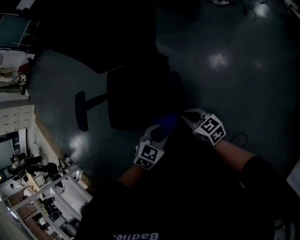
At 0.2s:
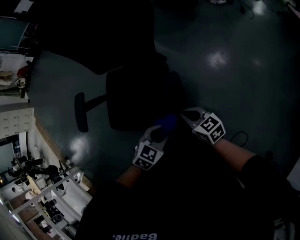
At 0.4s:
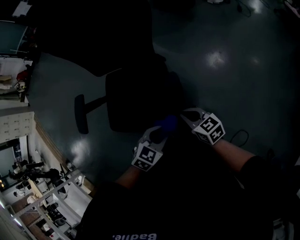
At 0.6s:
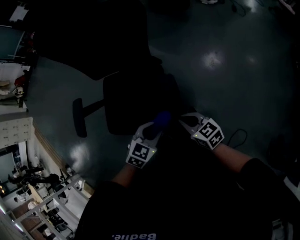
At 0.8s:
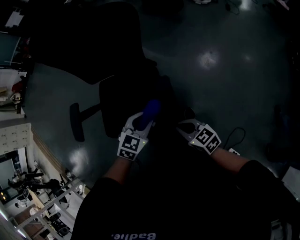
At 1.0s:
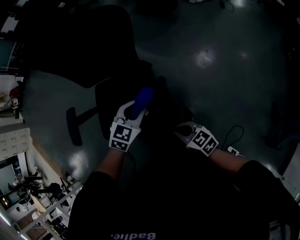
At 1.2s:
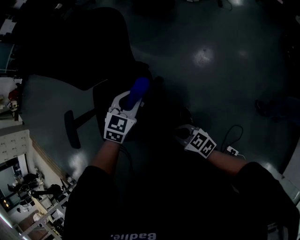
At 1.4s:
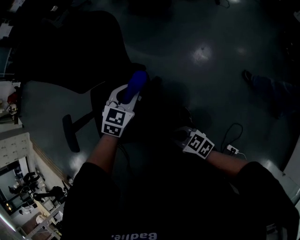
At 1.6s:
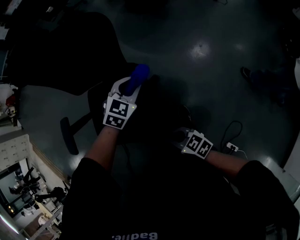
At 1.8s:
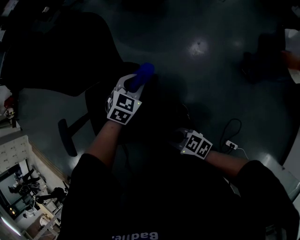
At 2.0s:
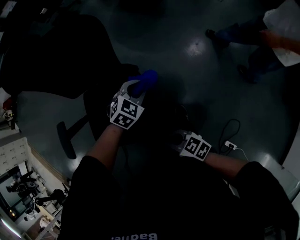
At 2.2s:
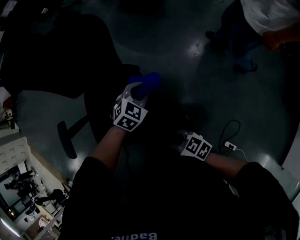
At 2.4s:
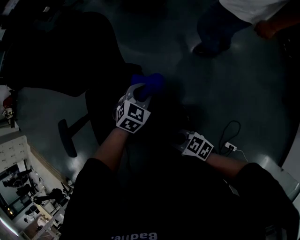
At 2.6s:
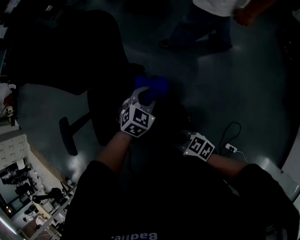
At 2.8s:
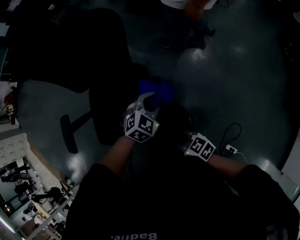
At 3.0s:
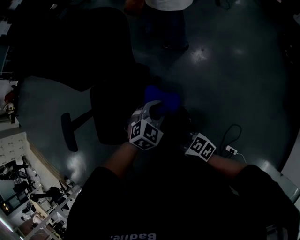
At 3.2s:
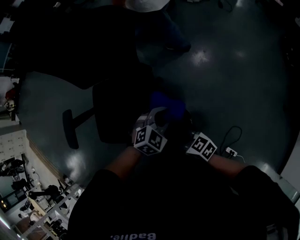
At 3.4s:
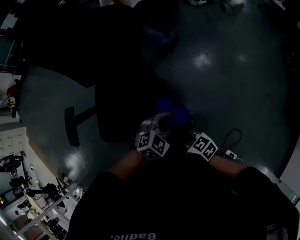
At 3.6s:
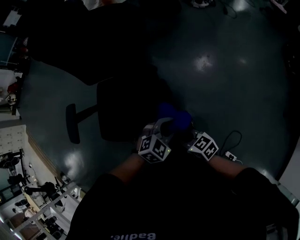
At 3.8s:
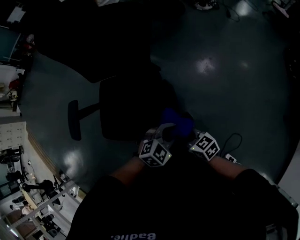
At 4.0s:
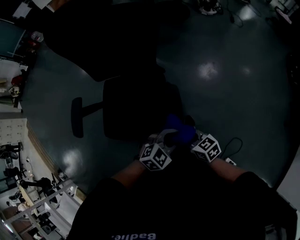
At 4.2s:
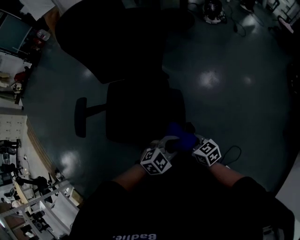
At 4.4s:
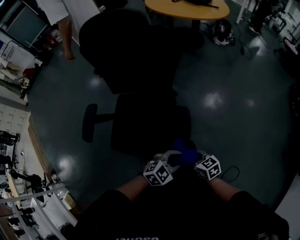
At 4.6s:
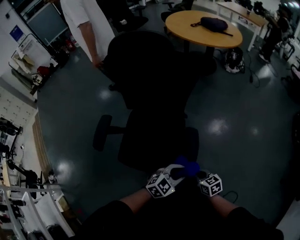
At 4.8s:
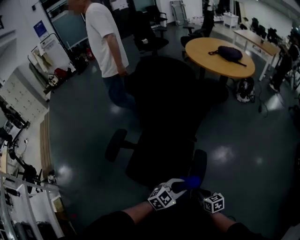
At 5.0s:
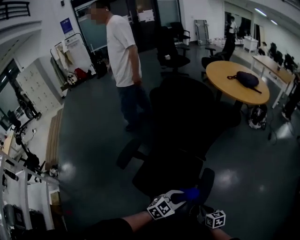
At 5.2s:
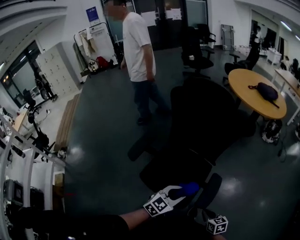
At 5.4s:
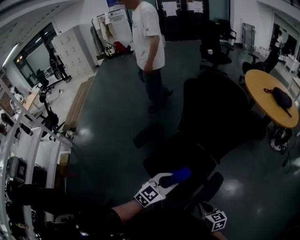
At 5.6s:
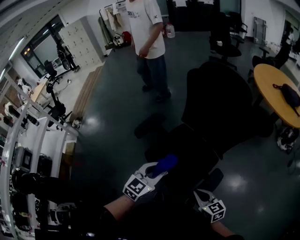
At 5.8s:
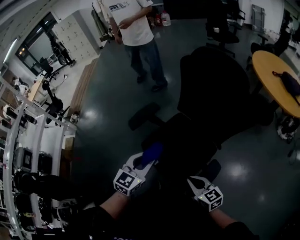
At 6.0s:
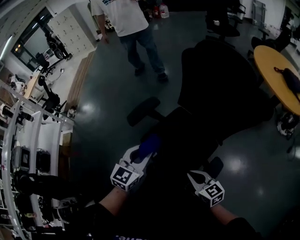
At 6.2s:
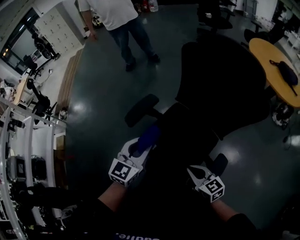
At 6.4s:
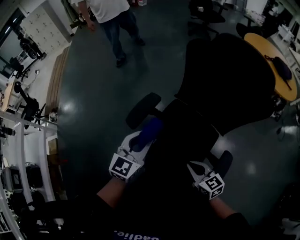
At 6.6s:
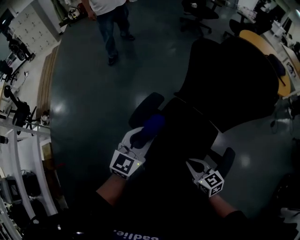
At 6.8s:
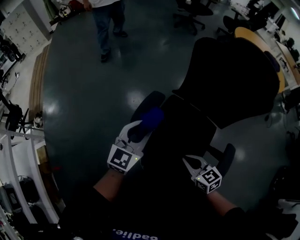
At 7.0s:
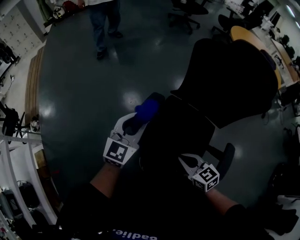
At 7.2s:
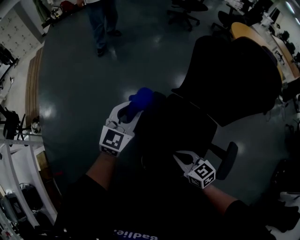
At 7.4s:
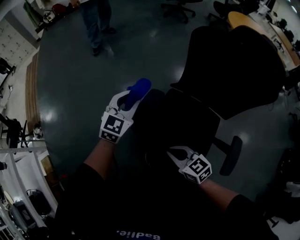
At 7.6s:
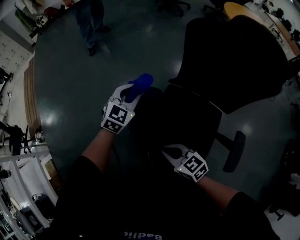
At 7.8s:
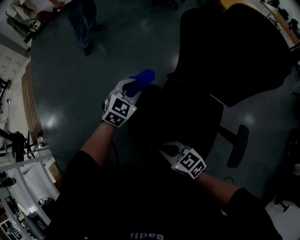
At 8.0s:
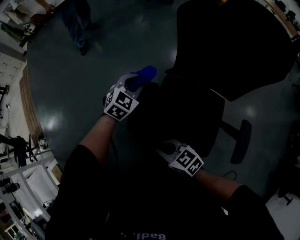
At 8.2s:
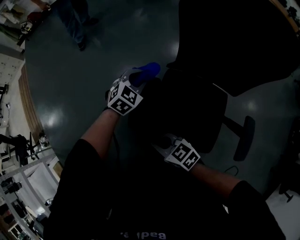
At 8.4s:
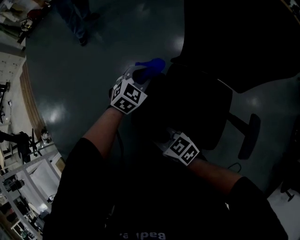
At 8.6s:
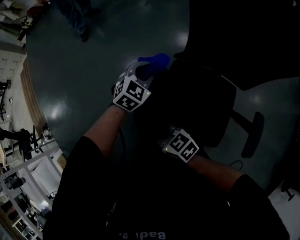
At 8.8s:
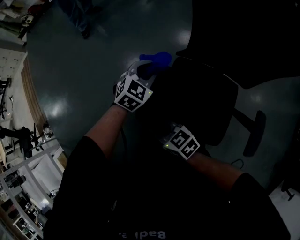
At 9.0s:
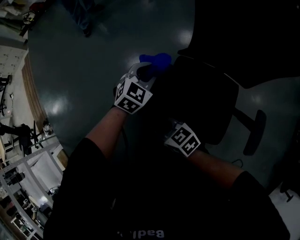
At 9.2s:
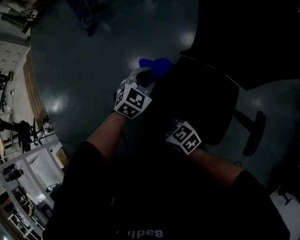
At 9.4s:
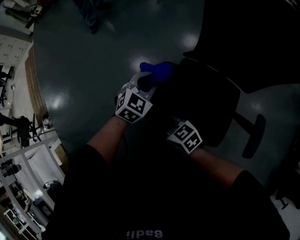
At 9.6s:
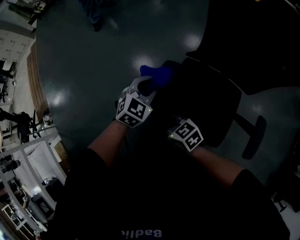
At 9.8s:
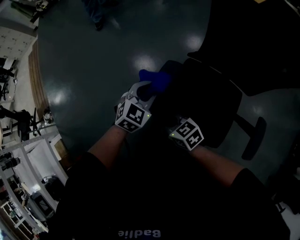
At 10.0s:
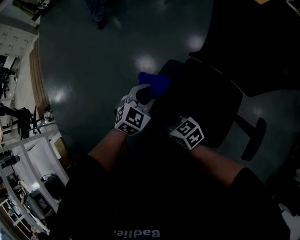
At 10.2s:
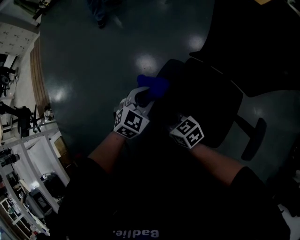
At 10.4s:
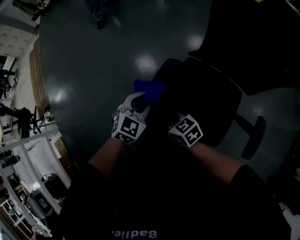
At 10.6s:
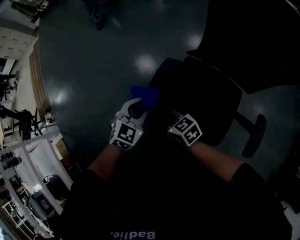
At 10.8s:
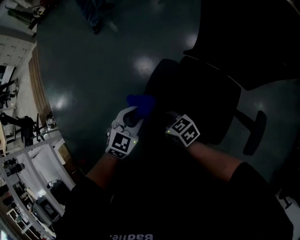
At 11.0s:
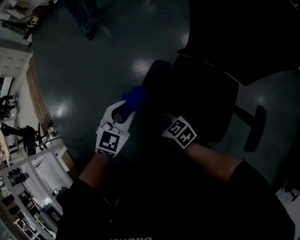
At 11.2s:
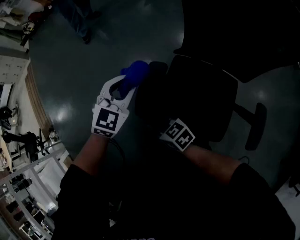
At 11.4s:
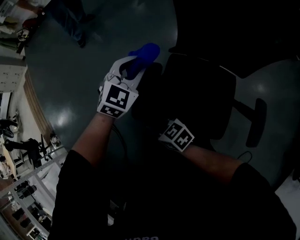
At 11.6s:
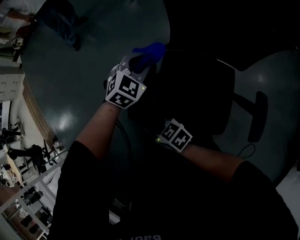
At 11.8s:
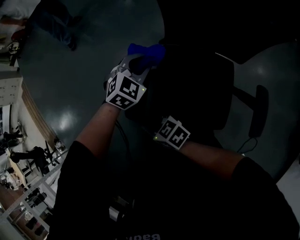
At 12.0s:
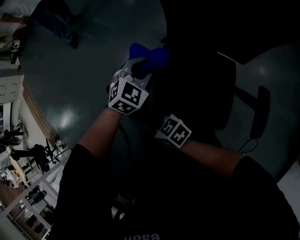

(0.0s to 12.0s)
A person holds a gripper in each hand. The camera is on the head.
0.0s - 1.6s: The left gripper is displaced forward by approximately 25 cm, while the right gripper goes roughly 5 cm backward.
1.6s - 3.0s: The left gripper shifts some 15 cm backward.
3.0s - 4.4s: The left gripper shifts by some 15 cm.
4.4s - 6.0s: The left gripper shifts by some 35 cm, and swivels roughly 80 degrees, while the right gripper ends up roughly 20 cm from where it was, and changes its angle by roughly 40 degrees.
6.0s - 7.6s: The right gripper travels to the left and forward by about 30 cm. The left gripper is displaced forward by approximately 30 cm, and swivels approximately 30 degrees.
7.6s - 9.0s: The right gripper travels downward, to the left and forward by approximately 10 cm; the left gripper heads downward, covering about 10 cm.
9.0s - 10.4s: The left gripper moves backward and to the left, approximately 15 cm.
10.4s - 12.0s: The left gripper shifts about 15 cm to the right and forward, and swivels about 20 degrees.

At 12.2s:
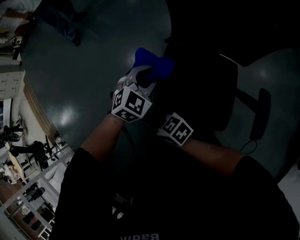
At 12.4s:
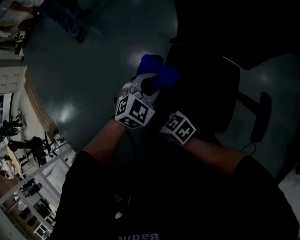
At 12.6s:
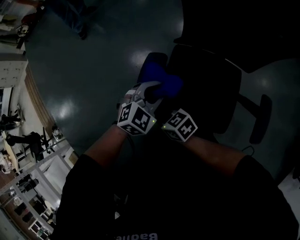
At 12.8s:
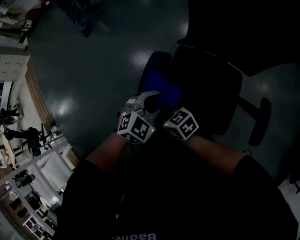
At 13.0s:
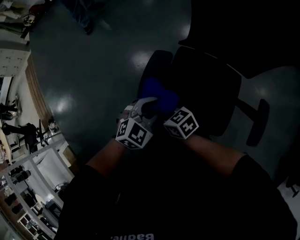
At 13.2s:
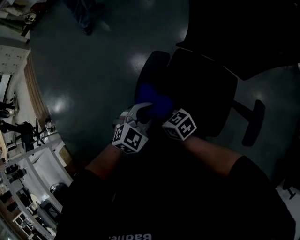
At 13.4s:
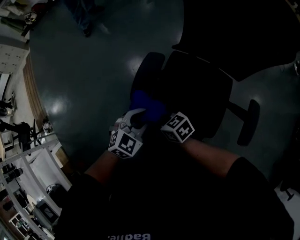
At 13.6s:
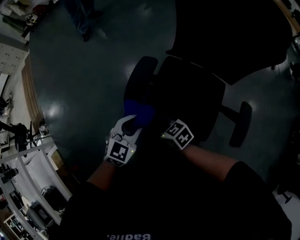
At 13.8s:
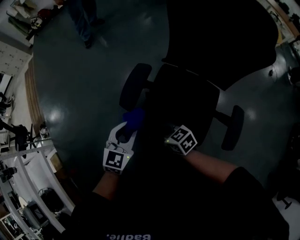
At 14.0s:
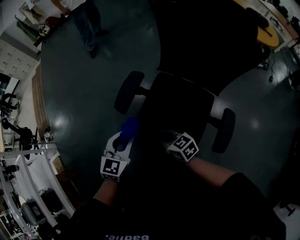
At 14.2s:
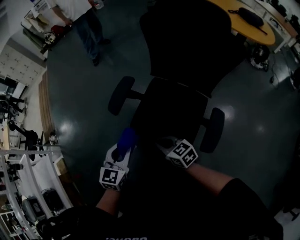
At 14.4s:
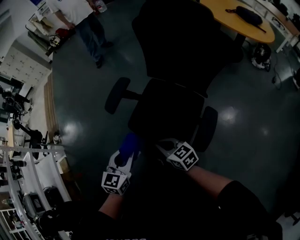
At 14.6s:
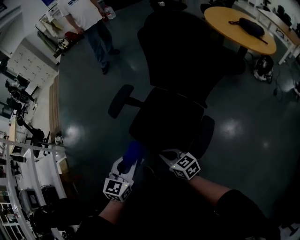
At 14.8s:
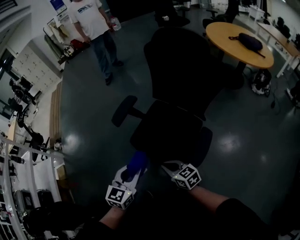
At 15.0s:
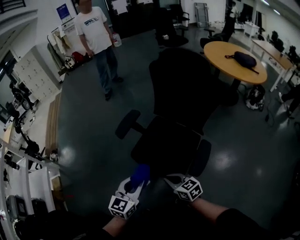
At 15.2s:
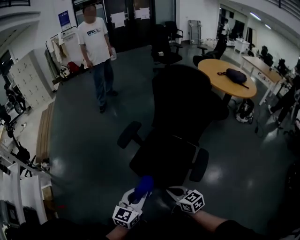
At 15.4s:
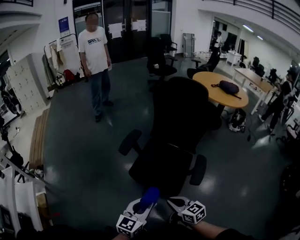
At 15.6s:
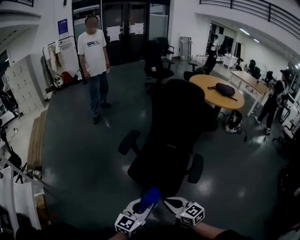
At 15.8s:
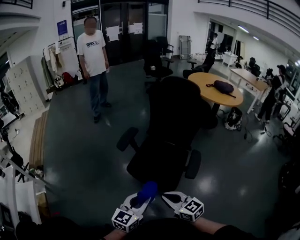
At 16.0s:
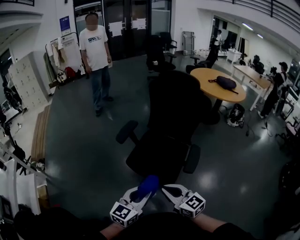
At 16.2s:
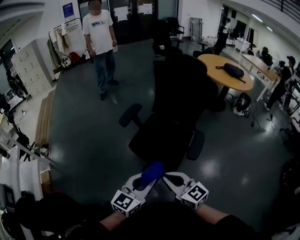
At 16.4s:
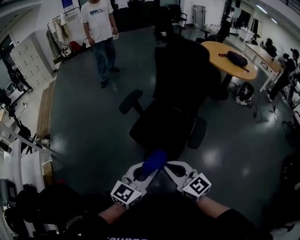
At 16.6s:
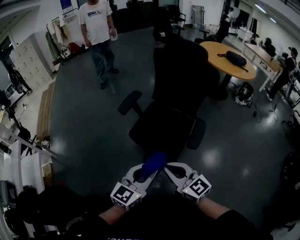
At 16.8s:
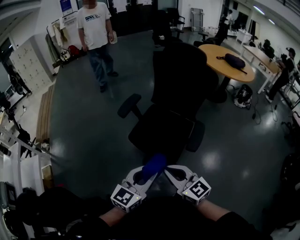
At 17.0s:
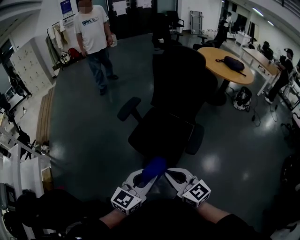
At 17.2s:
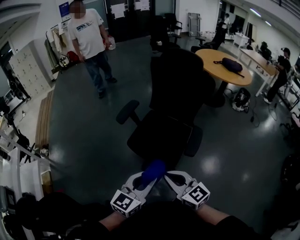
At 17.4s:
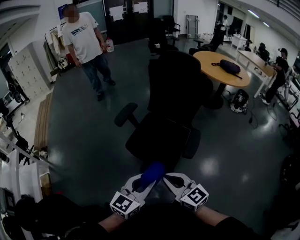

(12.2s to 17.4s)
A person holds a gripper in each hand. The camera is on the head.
12.2s - 14.0s: The right gripper shifts about 20 cm to the right, backward and upward. Meanwhile the left gripper shifts approximately 25 cm backward and to the left, and turns by roughly 40 degrees.
14.0s - 15.6s: The right gripper heads backward and upward, covering roughly 25 cm, and changes its angle by approximately 20 degrees. Meanwhile the left gripper heads backward, covering about 25 cm, and changes its angle by approximately 20 degrees.
15.6s - 17.4s: The right gripper is displaced upward by approximately 5 cm. Meanwhile the left gripper travels to the right and upward by roughly 10 cm.

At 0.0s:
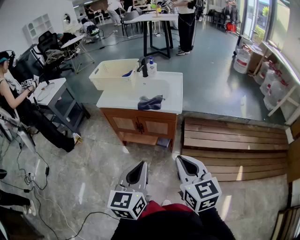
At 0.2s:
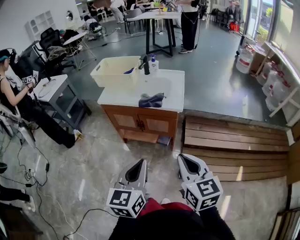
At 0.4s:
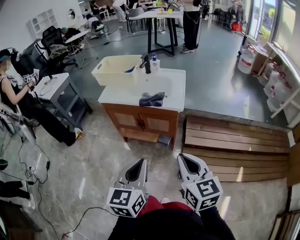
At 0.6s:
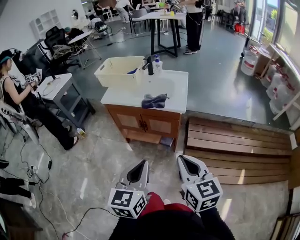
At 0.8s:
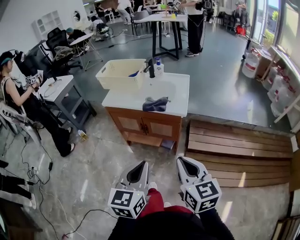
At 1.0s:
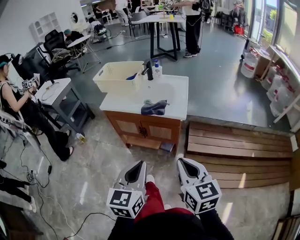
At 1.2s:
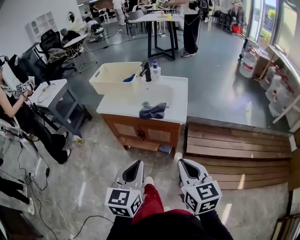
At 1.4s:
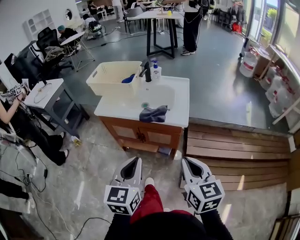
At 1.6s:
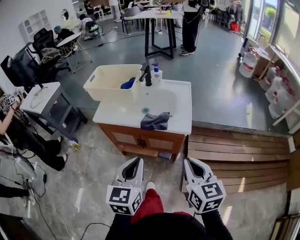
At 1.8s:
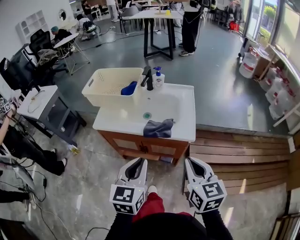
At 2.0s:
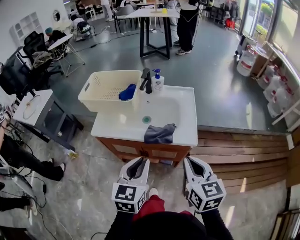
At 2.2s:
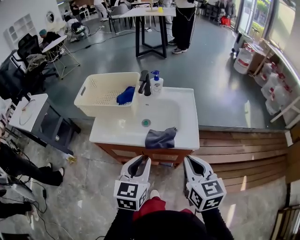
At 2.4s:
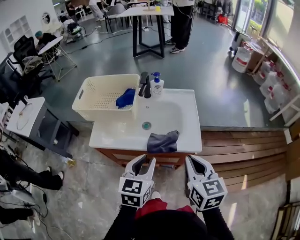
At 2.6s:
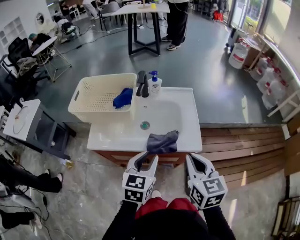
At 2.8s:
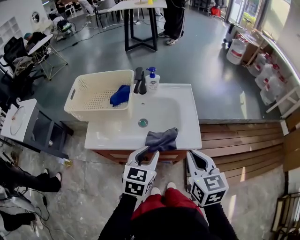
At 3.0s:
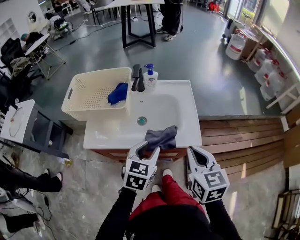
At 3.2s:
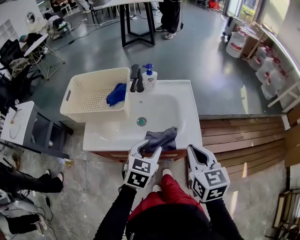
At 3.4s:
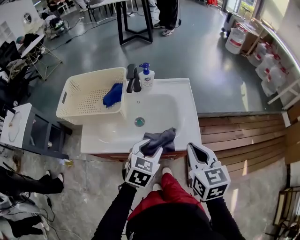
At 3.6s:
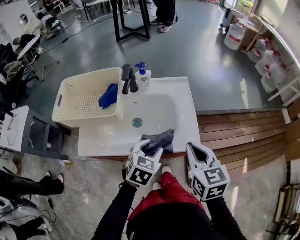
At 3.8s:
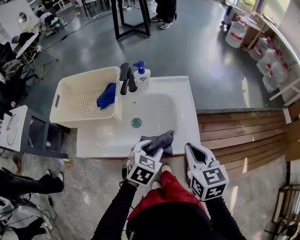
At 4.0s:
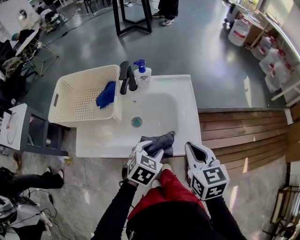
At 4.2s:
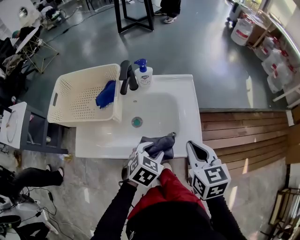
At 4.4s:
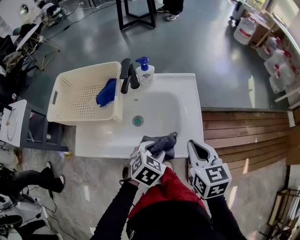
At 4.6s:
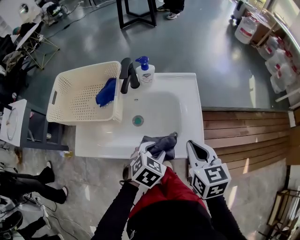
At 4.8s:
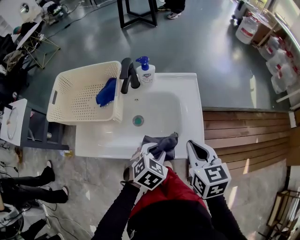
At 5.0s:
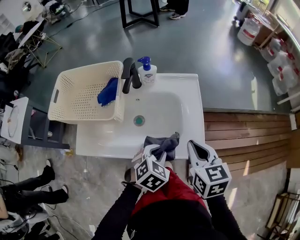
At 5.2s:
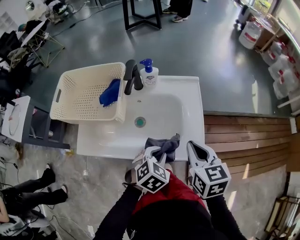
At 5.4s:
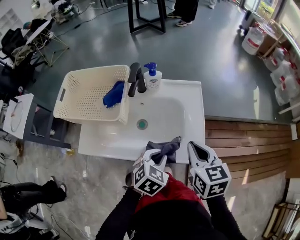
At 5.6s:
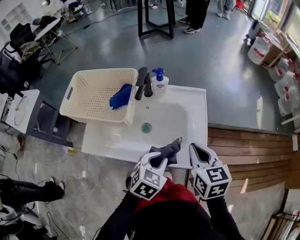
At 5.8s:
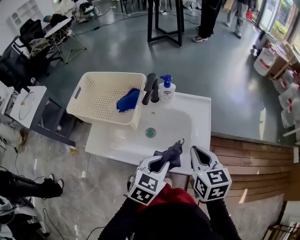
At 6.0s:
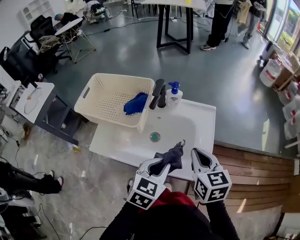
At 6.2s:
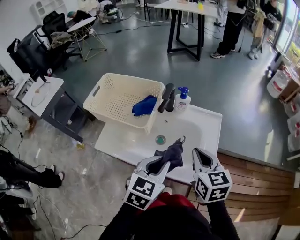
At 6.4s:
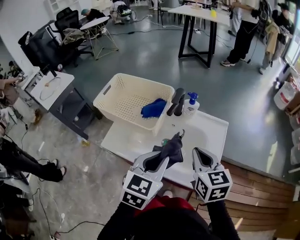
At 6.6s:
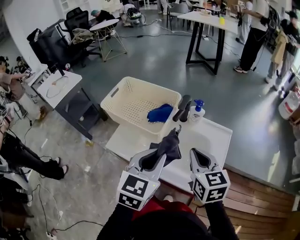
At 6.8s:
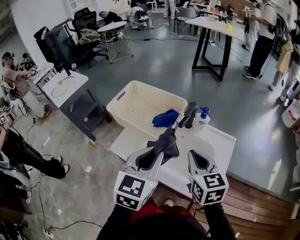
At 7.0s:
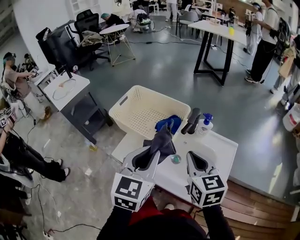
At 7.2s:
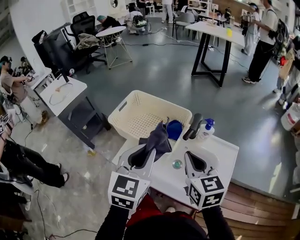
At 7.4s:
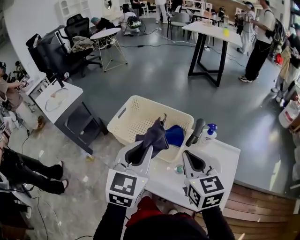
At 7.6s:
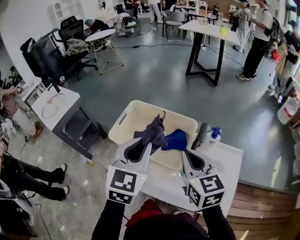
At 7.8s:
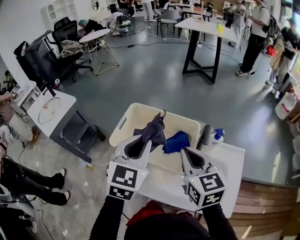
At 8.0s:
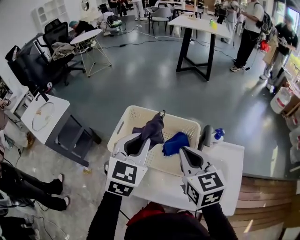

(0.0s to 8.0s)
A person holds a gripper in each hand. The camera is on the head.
0.0s - 1.6s: The grippers both shift forward by about 15 cm.
1.6s - 3.2s: The right gripper shifts approximately 20 cm forward; the left gripper shifts approximately 25 cm forward and downward, changes its angle by roughly 30 degrees, and opens its fingers.
3.2s - 4.8s: The right gripper moves forward and downward, about 10 cm. The left gripper heads downward, covering some 10 cm, and changes its angle by about 20 degrees.
4.8s - 6.4s: The left gripper travels upward and to the left by approximately 20 cm, and changes its angle by roughly 40 degrees, while the right gripper heads to the left, forward and upward, covering roughly 10 cm, and turns by roughly 20 degrees.
6.4s - 8.0s: The left gripper travels forward and to the left by approximately 30 cm. Meanwhile the right gripper is displaced to the left and forward by some 25 cm.
